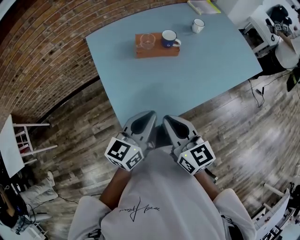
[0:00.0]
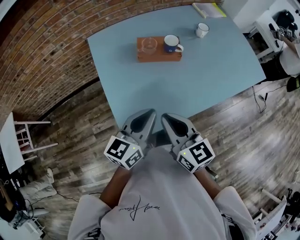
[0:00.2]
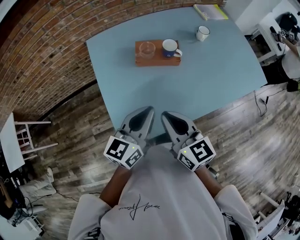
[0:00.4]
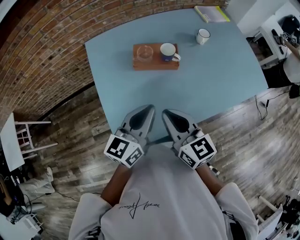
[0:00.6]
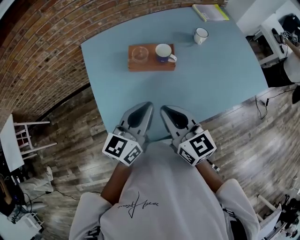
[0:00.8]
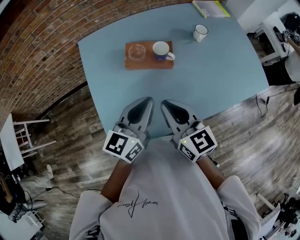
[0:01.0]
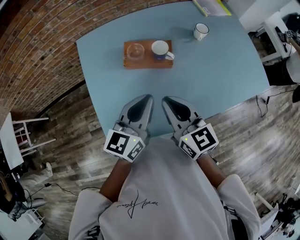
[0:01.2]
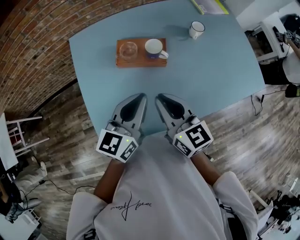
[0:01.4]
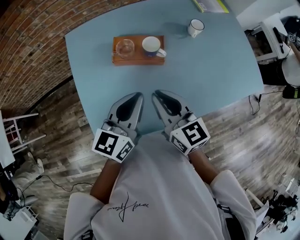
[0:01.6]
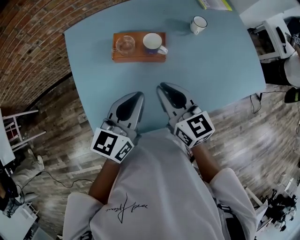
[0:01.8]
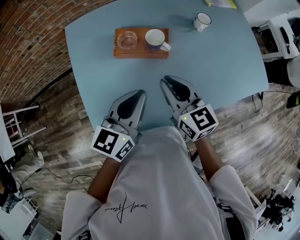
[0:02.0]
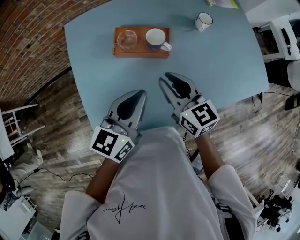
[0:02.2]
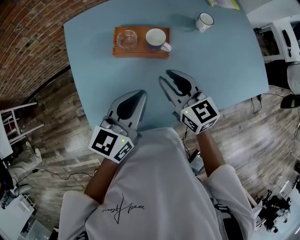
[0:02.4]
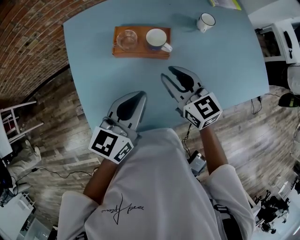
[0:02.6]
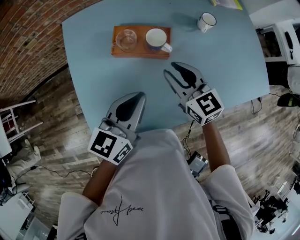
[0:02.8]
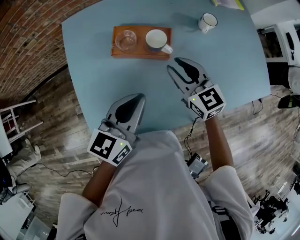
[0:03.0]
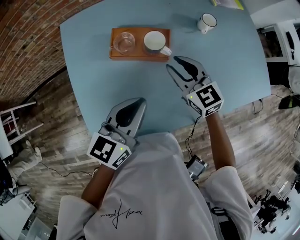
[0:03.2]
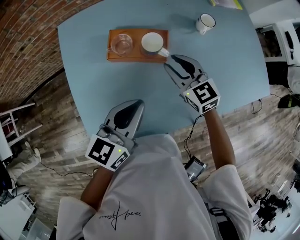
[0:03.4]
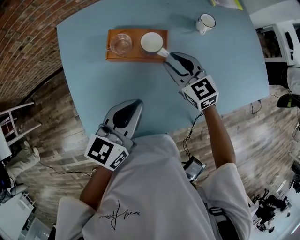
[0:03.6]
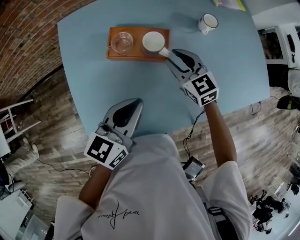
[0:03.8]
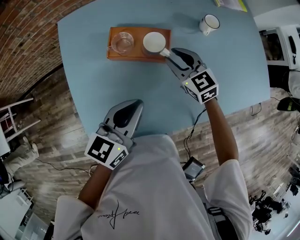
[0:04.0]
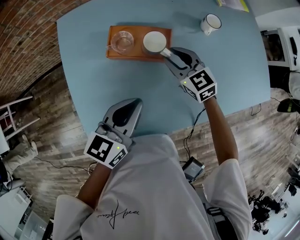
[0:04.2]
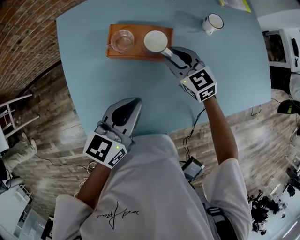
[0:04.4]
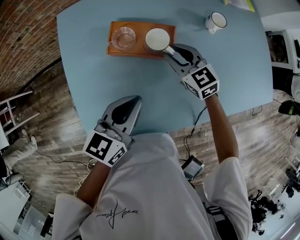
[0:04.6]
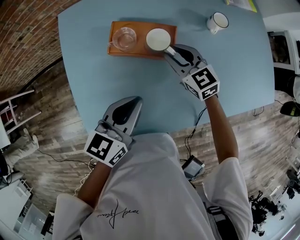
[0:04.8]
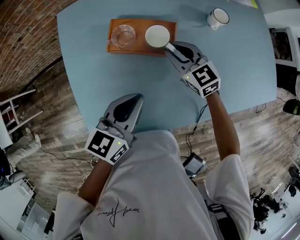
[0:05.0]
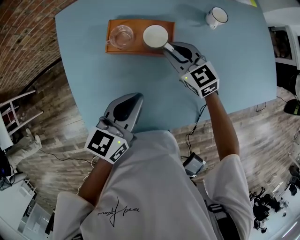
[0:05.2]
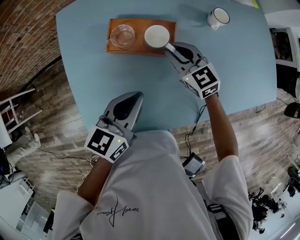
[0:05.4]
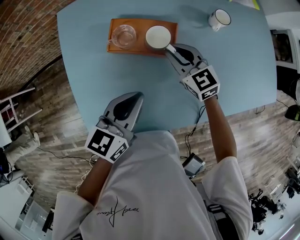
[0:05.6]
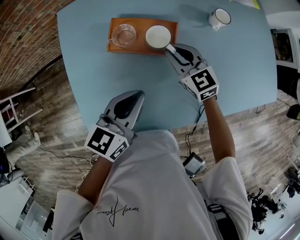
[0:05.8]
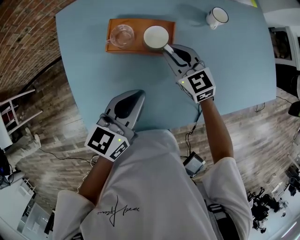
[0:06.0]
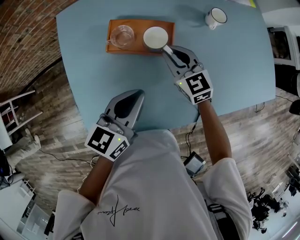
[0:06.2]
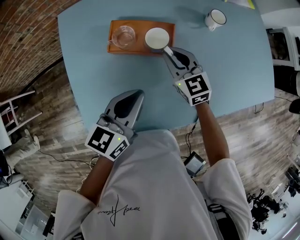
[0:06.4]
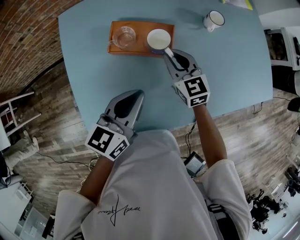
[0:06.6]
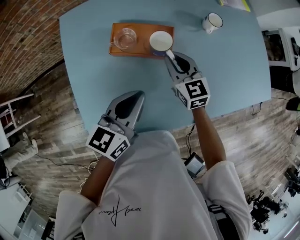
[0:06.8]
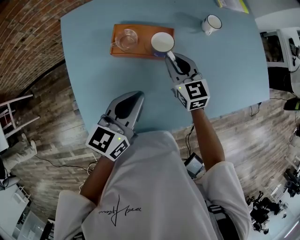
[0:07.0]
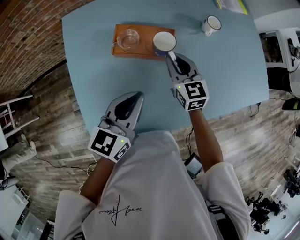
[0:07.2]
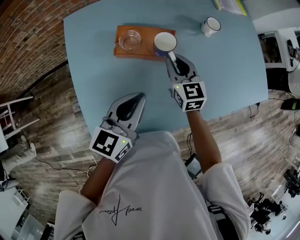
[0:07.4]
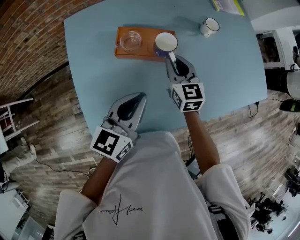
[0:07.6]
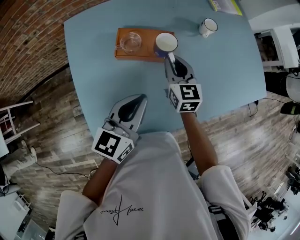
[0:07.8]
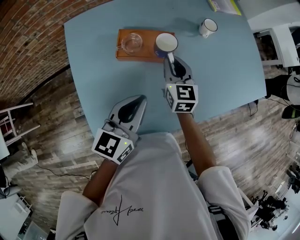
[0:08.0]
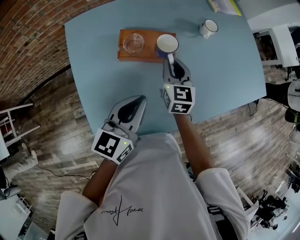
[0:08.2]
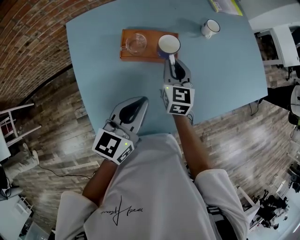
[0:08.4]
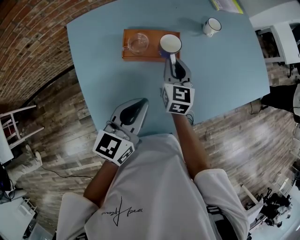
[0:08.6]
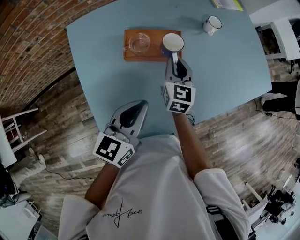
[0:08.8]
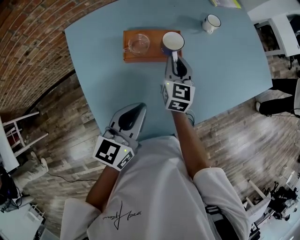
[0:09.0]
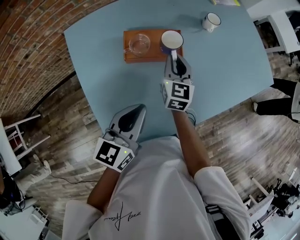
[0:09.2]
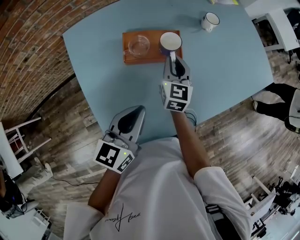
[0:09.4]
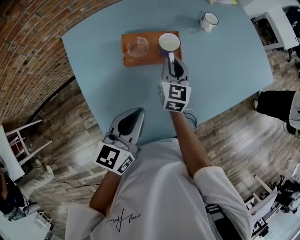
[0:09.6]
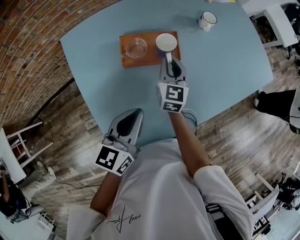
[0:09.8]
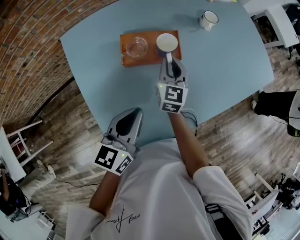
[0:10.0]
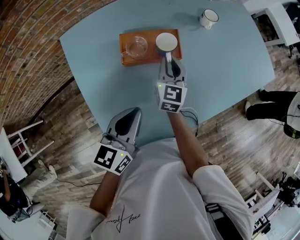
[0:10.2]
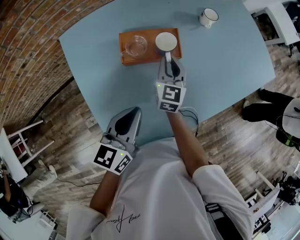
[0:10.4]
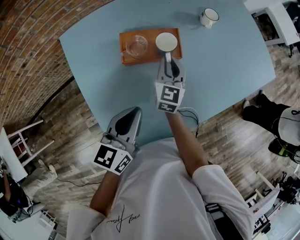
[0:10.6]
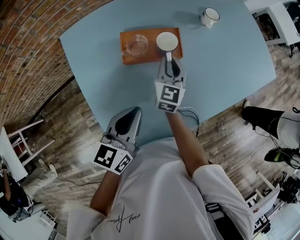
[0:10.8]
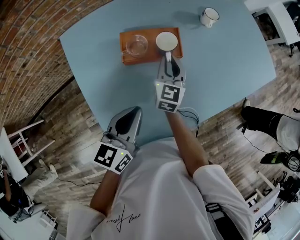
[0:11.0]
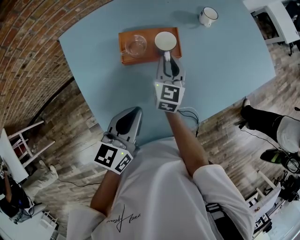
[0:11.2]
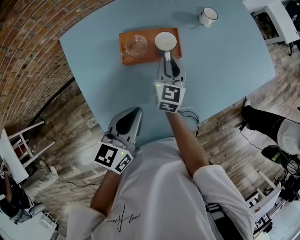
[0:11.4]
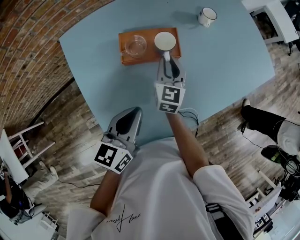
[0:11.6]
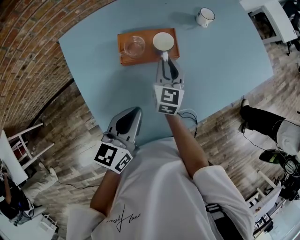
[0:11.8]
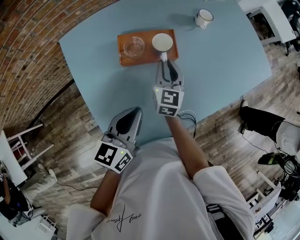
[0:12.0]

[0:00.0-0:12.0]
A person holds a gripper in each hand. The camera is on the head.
0:00.0 to 0:01.6: Both grippers move forward and to the right, approximately 20 cm.
0:01.6 to 0:03.0: The right gripper shifts roughly 15 cm forward, downward and to the right.
0:03.0 to 0:04.4: The right gripper heads downward and forward, covering approximately 10 cm.
0:04.4 to 0:06.0: The grippers move only a little.
0:06.0 to 0:07.6: The right gripper swivels roughly 20 degrees.
0:07.6 to 0:09.0: The right gripper swivels about 20 degrees, while the left gripper ends up some 5 cm from where it was.
0:09.0 to 0:12.0: The grippers make only small movements.

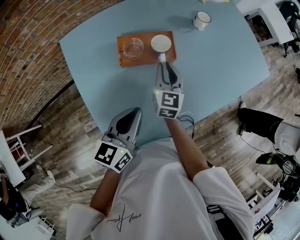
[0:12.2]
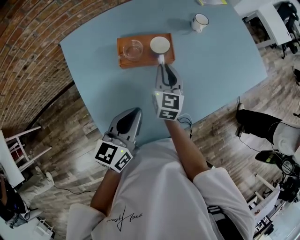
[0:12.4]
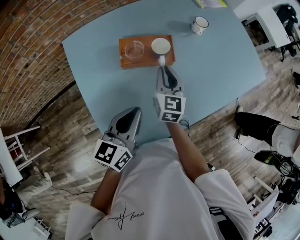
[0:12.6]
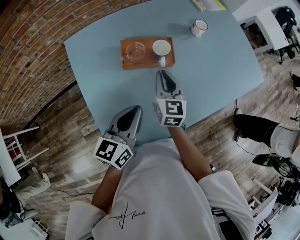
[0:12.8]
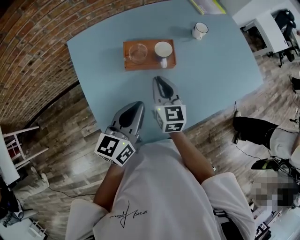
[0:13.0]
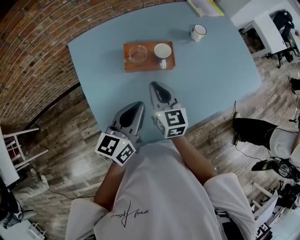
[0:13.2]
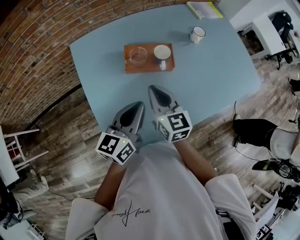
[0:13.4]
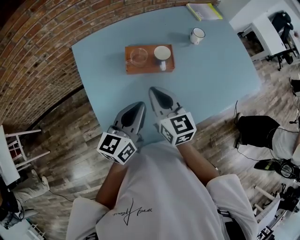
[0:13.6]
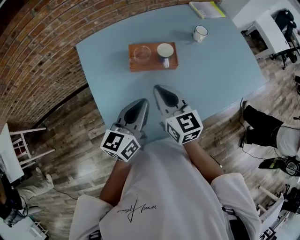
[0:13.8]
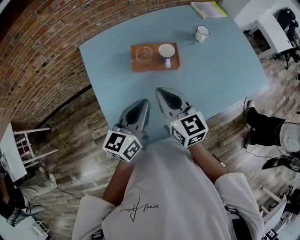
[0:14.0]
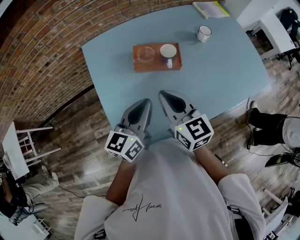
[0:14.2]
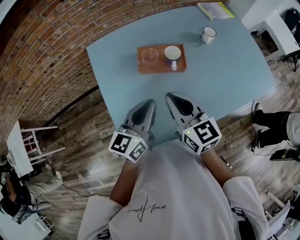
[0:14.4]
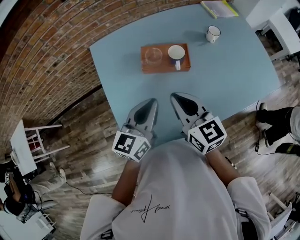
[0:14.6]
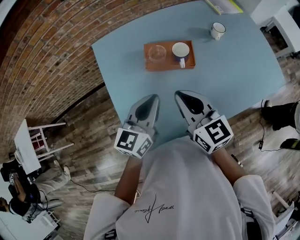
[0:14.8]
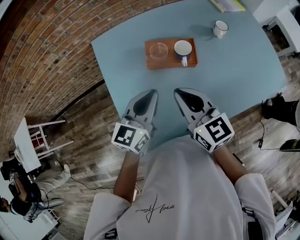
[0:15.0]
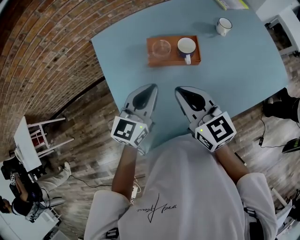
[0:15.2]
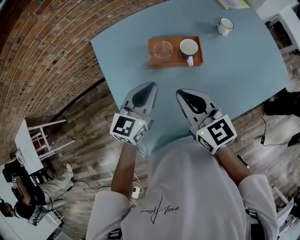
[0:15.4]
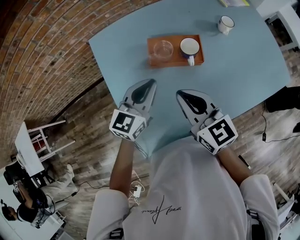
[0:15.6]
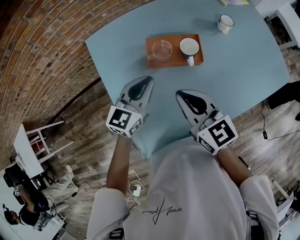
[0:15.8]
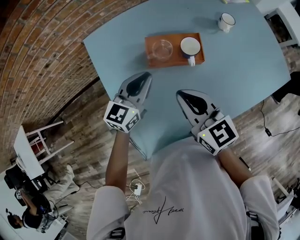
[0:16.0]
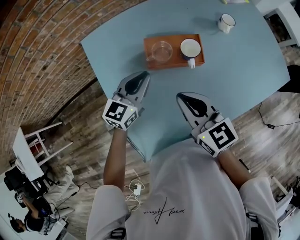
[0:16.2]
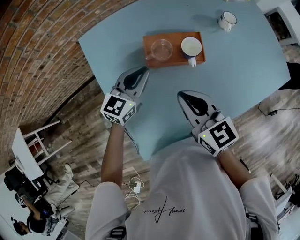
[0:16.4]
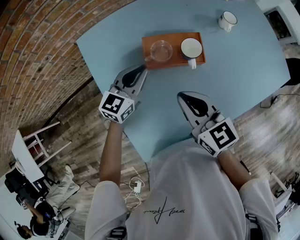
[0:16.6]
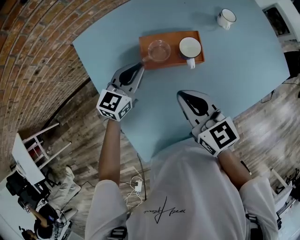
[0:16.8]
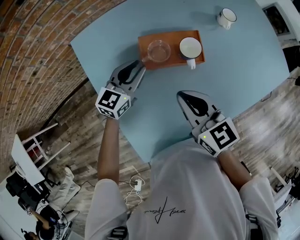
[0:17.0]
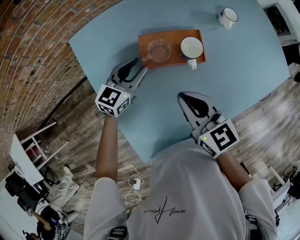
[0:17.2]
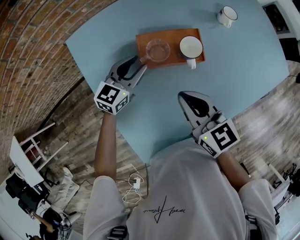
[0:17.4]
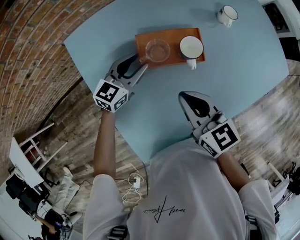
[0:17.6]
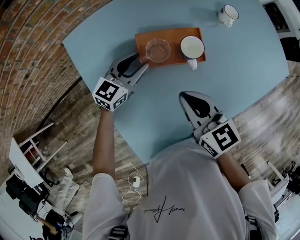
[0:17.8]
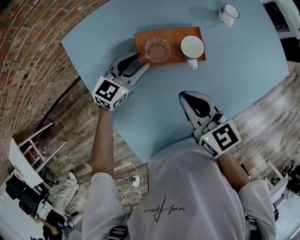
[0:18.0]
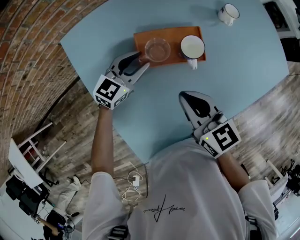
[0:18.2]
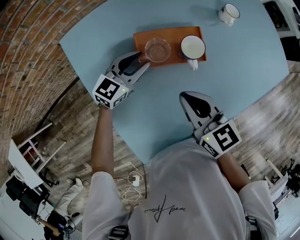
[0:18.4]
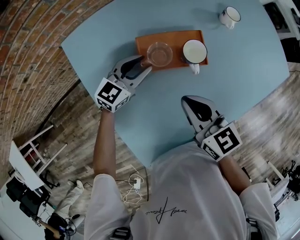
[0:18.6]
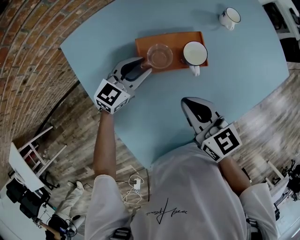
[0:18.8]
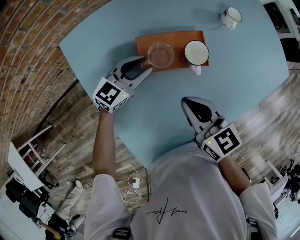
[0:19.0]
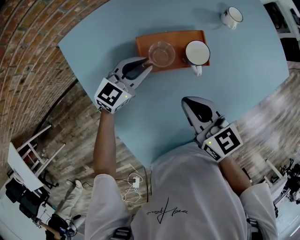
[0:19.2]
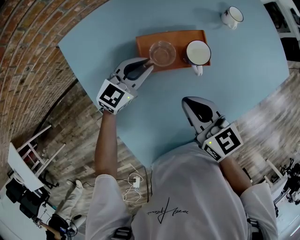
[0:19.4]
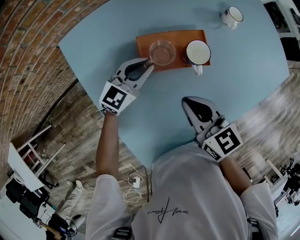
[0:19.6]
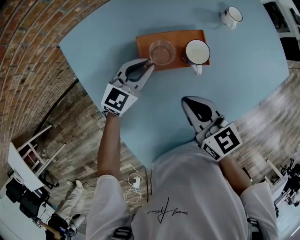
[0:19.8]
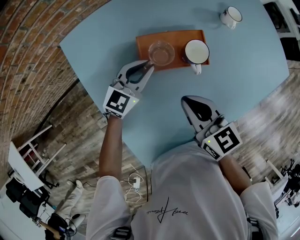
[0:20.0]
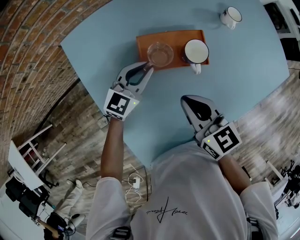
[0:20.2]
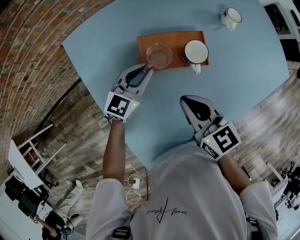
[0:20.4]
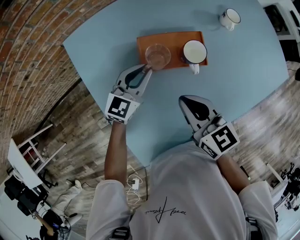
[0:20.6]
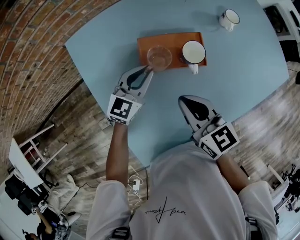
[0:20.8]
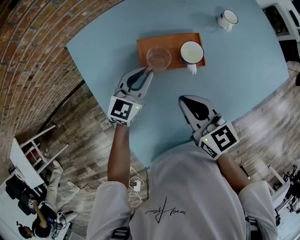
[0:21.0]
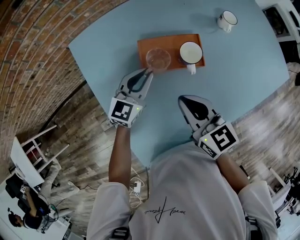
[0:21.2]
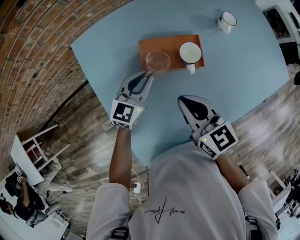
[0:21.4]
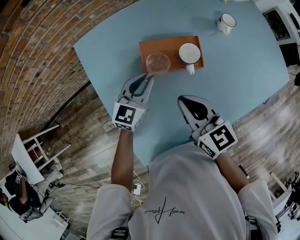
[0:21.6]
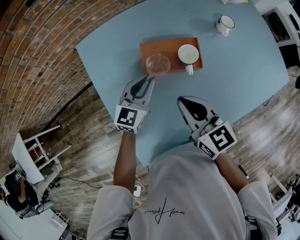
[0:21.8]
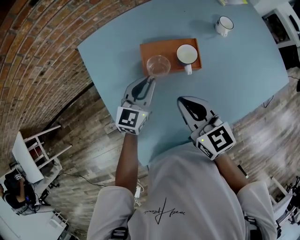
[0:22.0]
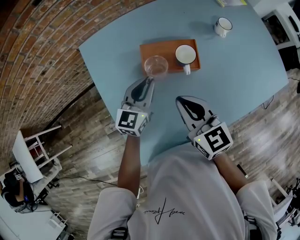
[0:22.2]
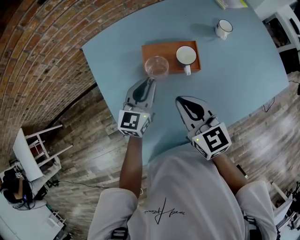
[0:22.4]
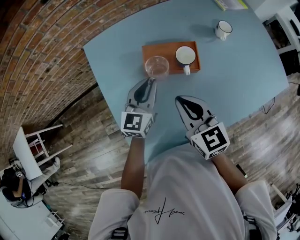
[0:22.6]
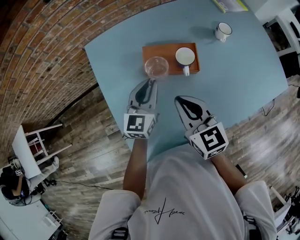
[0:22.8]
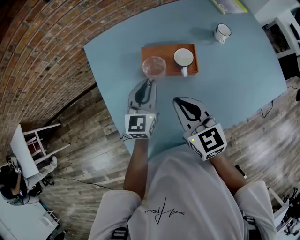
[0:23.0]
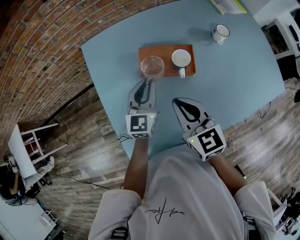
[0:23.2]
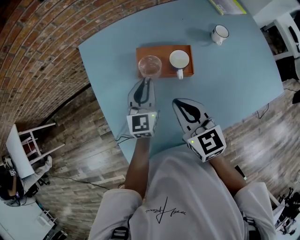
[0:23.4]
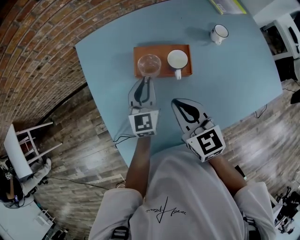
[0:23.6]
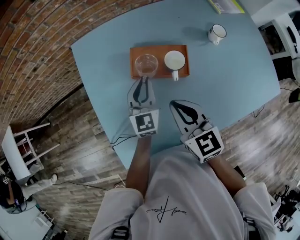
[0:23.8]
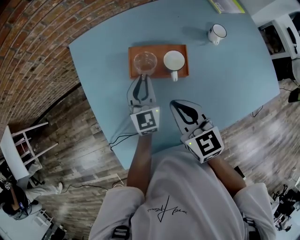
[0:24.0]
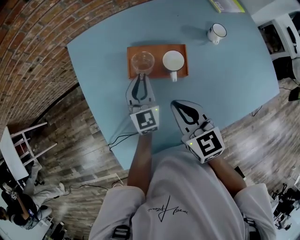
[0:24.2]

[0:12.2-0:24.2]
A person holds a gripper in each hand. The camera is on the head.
0:12.2 to 0:13.8: The right gripper shifts approximately 15 cm backward and upward, and swivels approximately 30 degrees.
0:13.8 to 0:15.2: The left gripper shifts roughly 5 cm forward.
0:15.2 to 0:16.6: The right gripper changes place by roughly 5 cm; the left gripper goes about 15 cm forward and downward.
0:16.6 to 0:18.2: The left gripper is displaced downward by about 5 cm, and opens.
0:18.2 to 0:19.8: The left gripper closes its fingers.
0:19.8 to 0:21.2: The grippers stay close to where they were, moving slightly.
0:21.2 to 0:22.6: The left gripper ends up some 5 cm from where it was.
0:22.6 to 0:24.2: The left gripper shifts by approximately 5 cm, and changes its angle by approximately 20 degrees.
